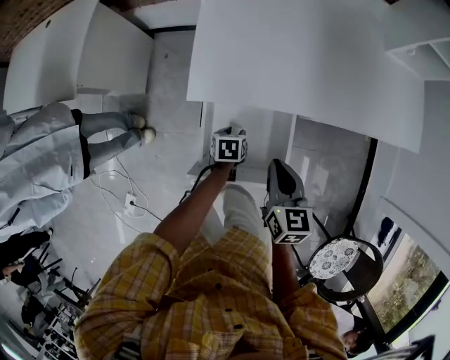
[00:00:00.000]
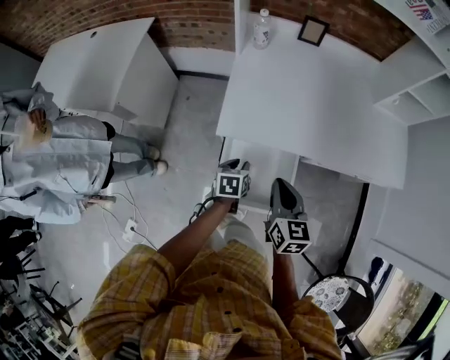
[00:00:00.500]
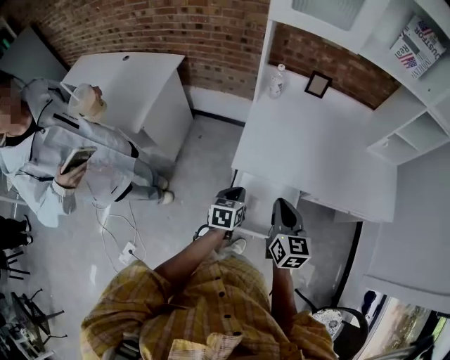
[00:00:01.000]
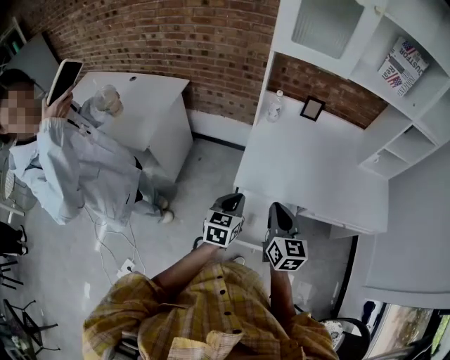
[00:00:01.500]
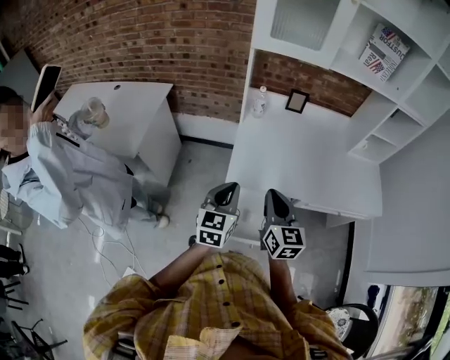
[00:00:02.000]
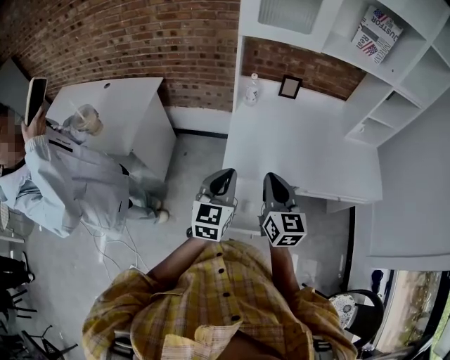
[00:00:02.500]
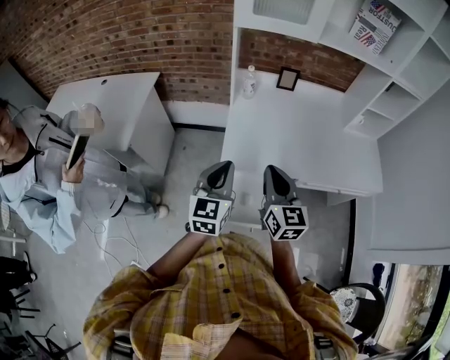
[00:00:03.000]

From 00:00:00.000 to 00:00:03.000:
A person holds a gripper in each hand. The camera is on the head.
From 00:00:00.000 to 00:00:01.500: The right gripper heads upward and to the left, covering some 25 cm, and turns by approximately 20 degrees; the left gripper goes some 35 cm upward, points its fingers some 40 degrees further upward, and closes up.
From 00:00:01.500 to 00:00:03.000: The left gripper shifts about 10 cm upward. Meanwhile the right gripper shifts by approximately 5 cm.

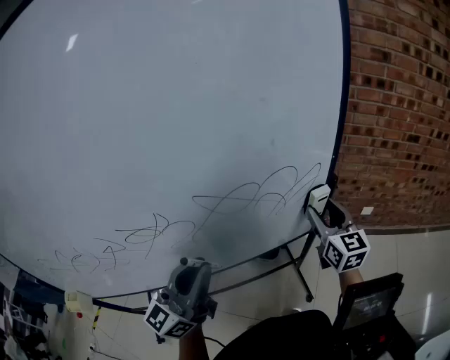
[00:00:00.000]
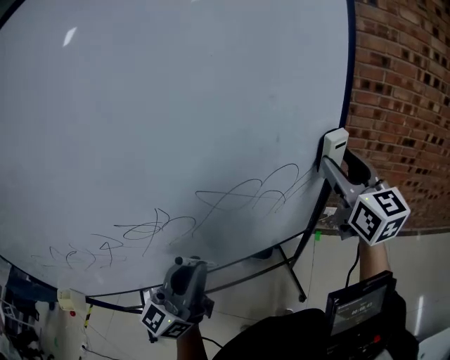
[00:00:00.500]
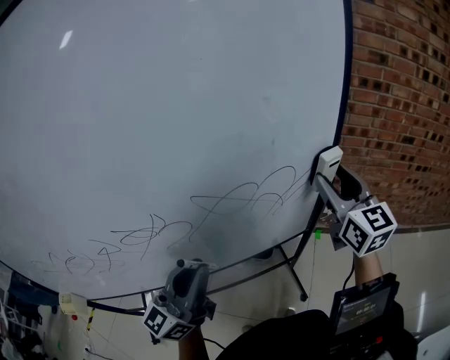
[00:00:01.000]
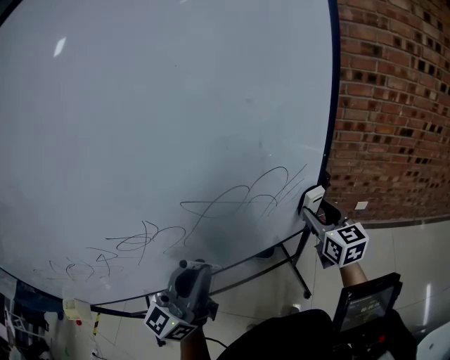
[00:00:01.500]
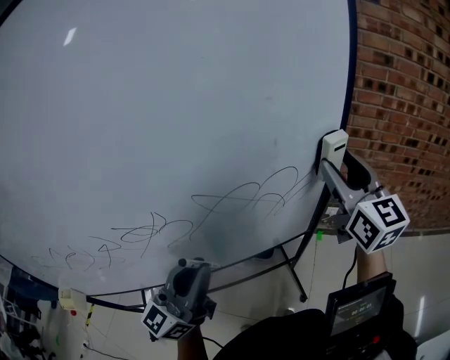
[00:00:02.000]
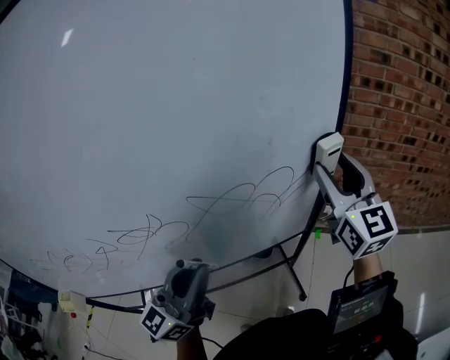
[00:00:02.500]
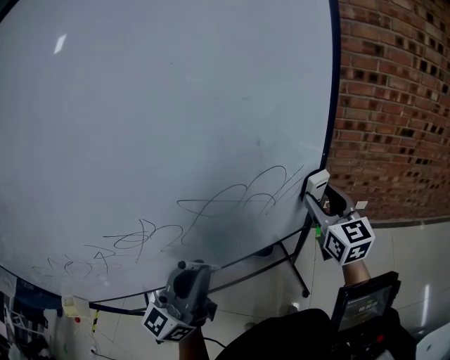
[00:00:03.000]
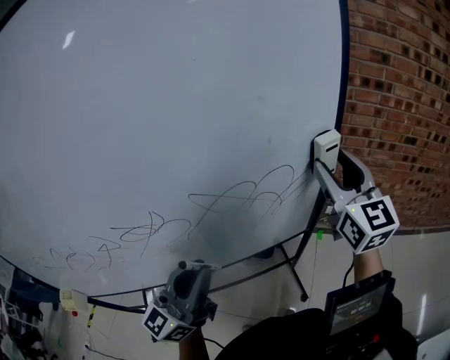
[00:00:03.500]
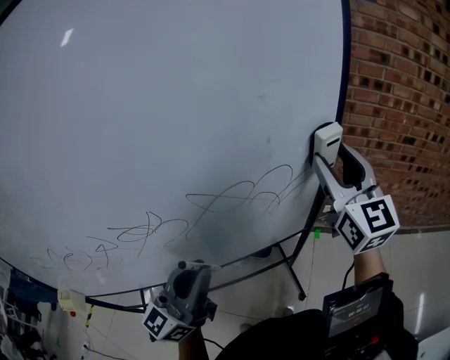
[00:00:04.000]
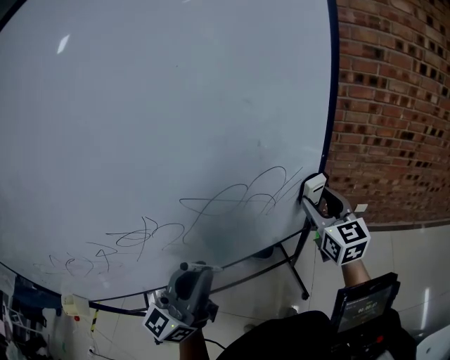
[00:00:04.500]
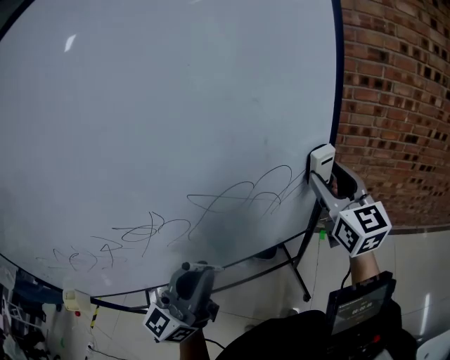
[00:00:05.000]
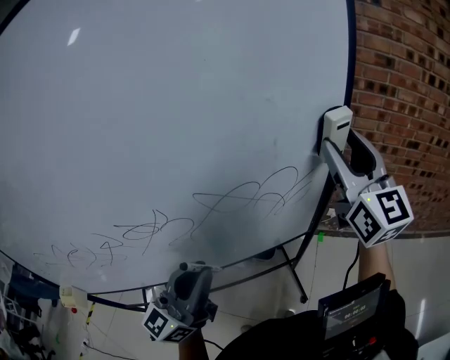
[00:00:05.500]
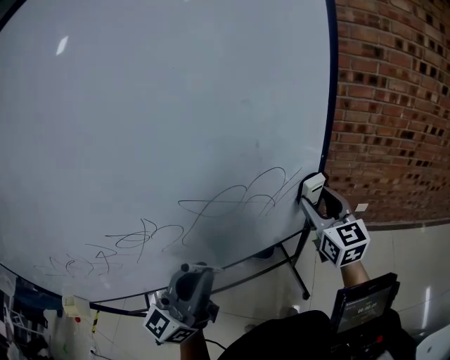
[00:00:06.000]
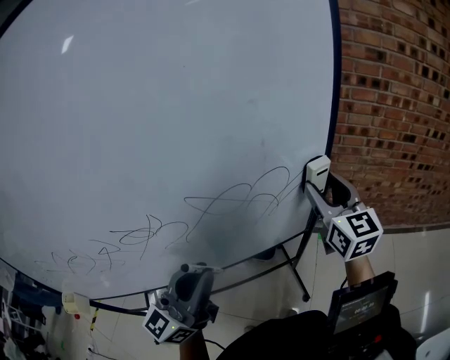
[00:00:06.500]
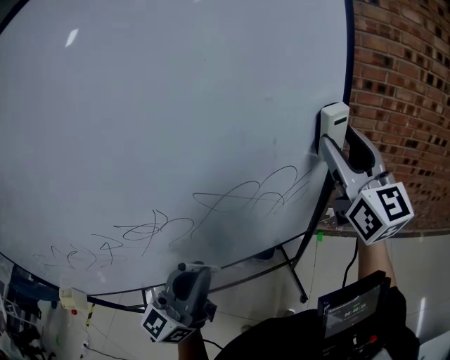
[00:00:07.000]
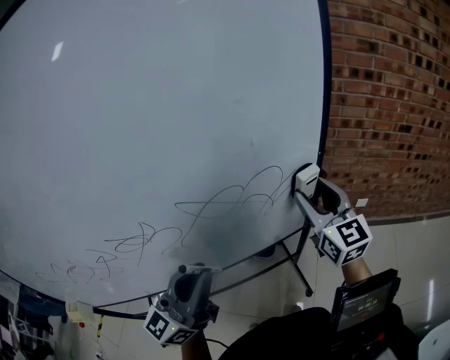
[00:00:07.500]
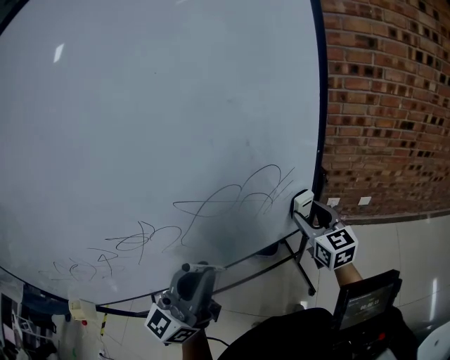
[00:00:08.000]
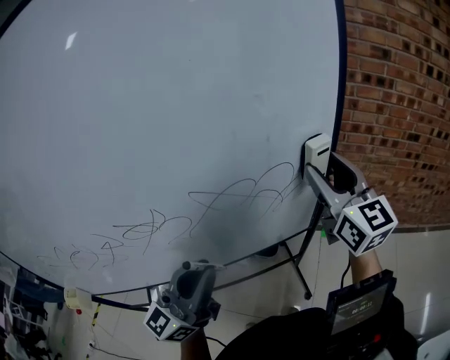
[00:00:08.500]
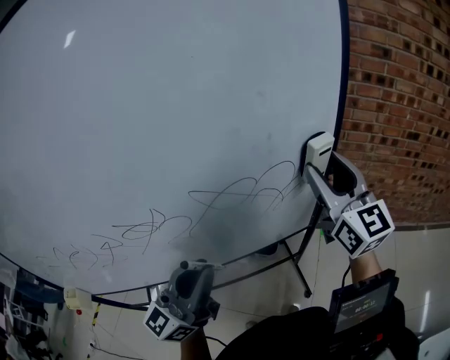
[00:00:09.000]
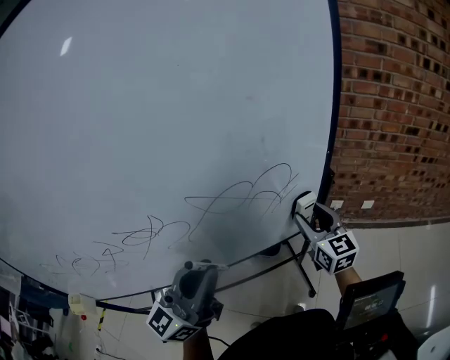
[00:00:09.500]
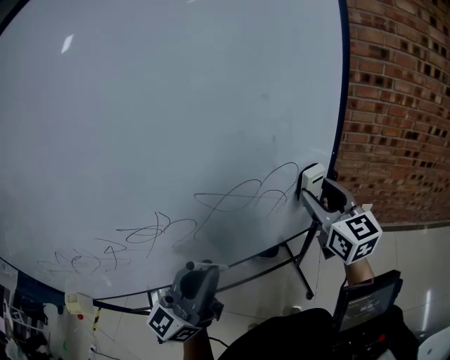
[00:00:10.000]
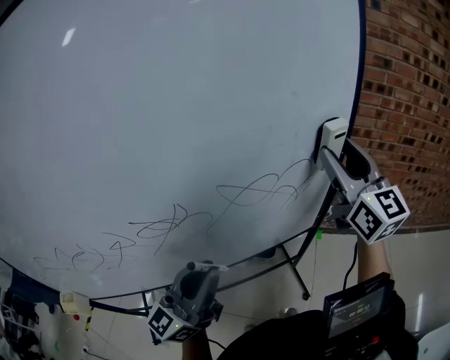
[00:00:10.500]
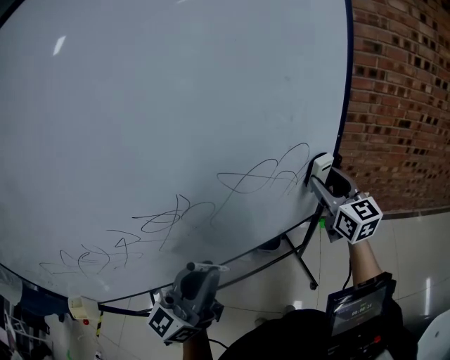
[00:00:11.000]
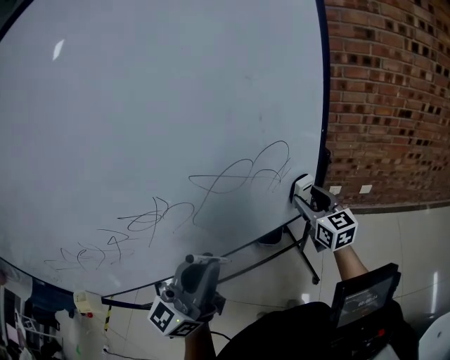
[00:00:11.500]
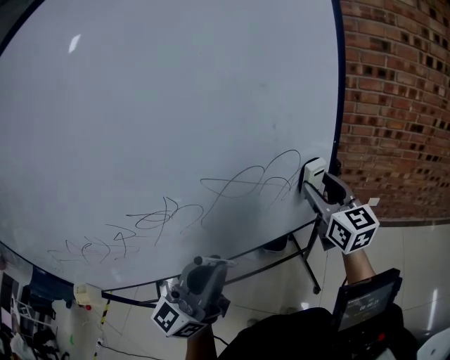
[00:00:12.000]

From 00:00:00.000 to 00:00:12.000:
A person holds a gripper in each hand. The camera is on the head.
From 00:00:00.000 to 00:00:02.000: The right gripper swings up and down, roughly 20 cm each way, with 2 reversals.
From 00:00:02.000 to 00:00:04.000: The right gripper moves some 15 cm downward and comes back.
From 00:00:04.000 to 00:00:06.000: The right gripper goes up and down, some 20 cm each way, reversing 2 times.
From 00:00:06.000 to 00:00:08.000: The right gripper goes upward and returns, roughly 20 cm each way.
From 00:00:08.000 to 00:00:10.000: The right gripper swings up and down, approximately 20 cm each way, with 2 reversals.
From 00:00:10.000 to 00:00:12.000: The right gripper goes up and down, about 25 cm each way, reversing 2 times.

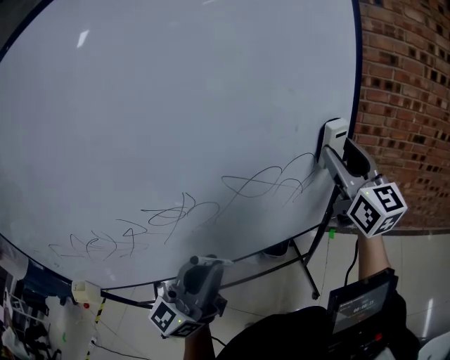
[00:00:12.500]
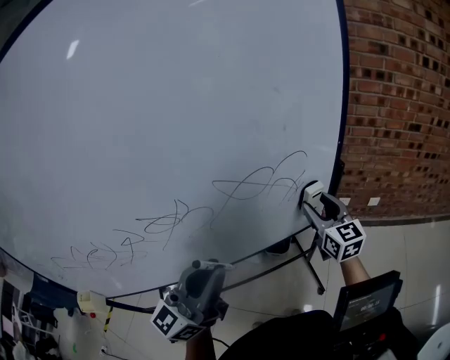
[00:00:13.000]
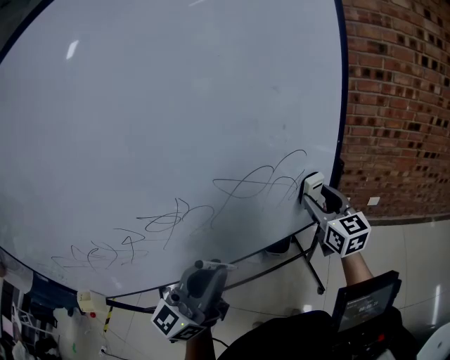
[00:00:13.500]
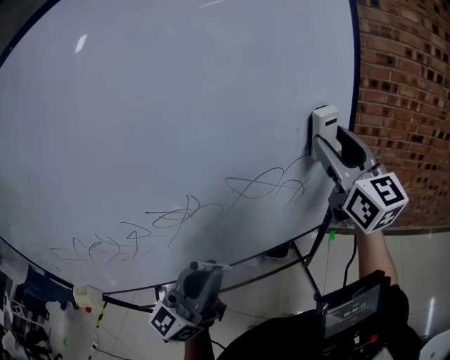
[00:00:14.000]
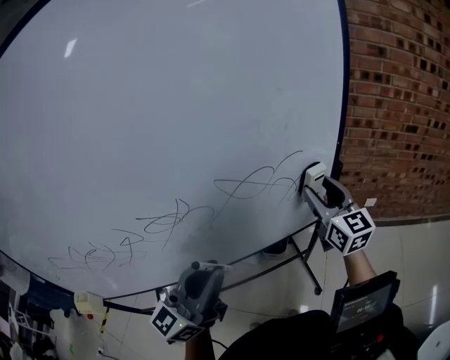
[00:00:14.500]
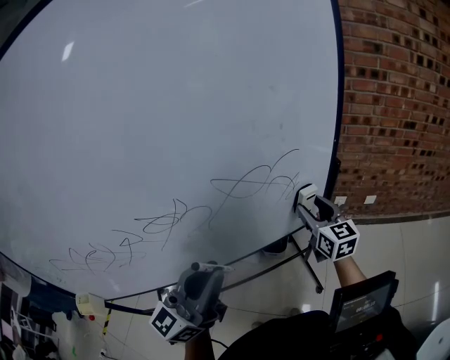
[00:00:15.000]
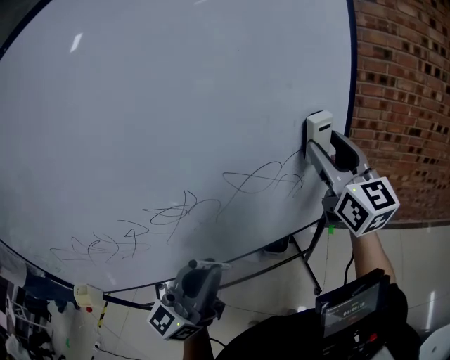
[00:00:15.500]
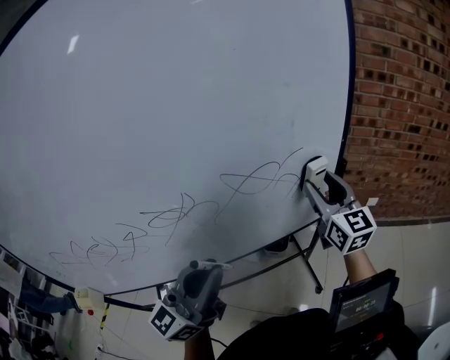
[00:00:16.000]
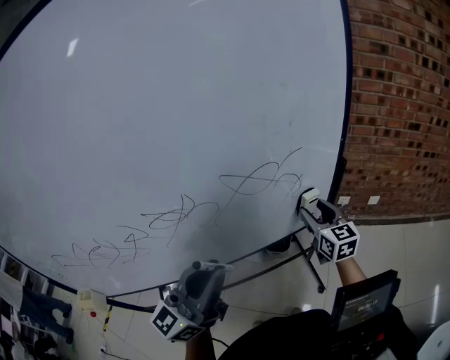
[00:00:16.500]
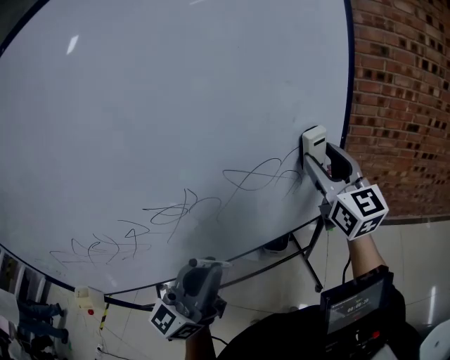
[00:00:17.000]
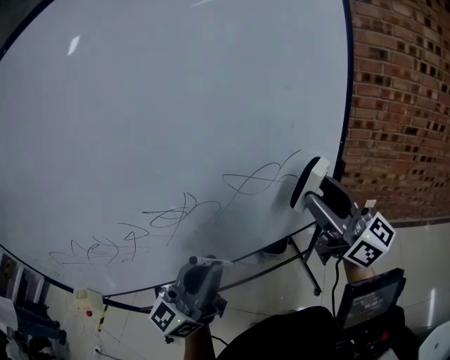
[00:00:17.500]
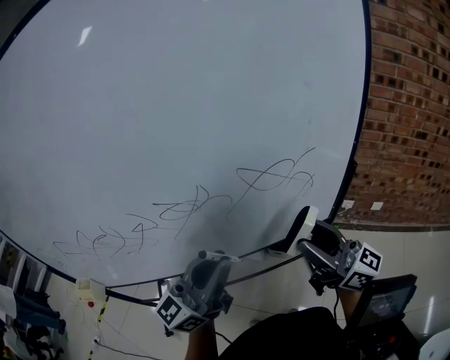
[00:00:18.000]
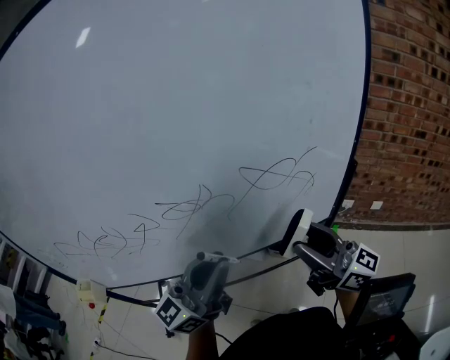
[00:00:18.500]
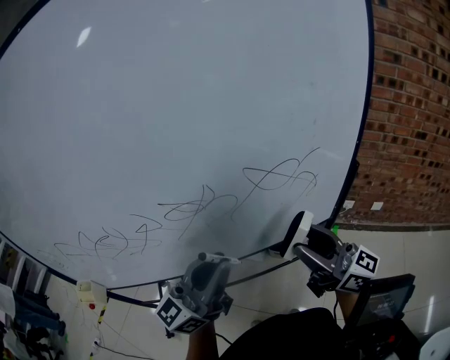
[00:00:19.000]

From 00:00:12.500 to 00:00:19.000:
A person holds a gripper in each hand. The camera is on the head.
From 00:00:12.500 to 00:00:14.500: The right gripper goes up and down, some 25 cm each way, reversing 2 times.
From 00:00:14.500 to 00:00:17.000: The right gripper goes up and down, approximately 25 cm each way, reversing 3 times.
From 00:00:17.000 to 00:00:19.000: The right gripper is displaced backward, to the left and downward by about 20 cm, and turns by roughly 50 degrees.

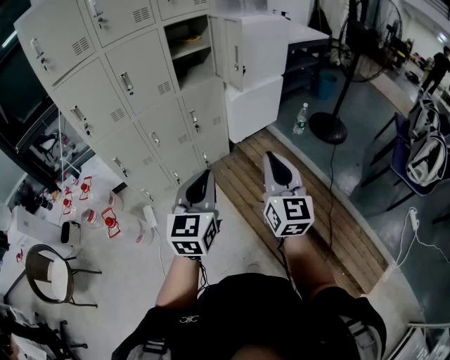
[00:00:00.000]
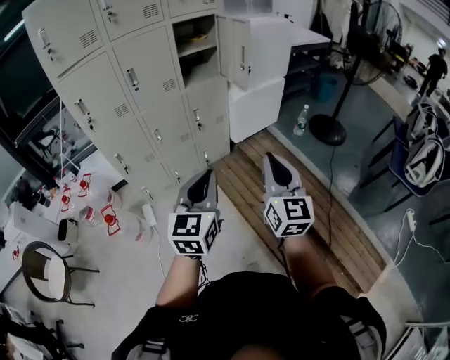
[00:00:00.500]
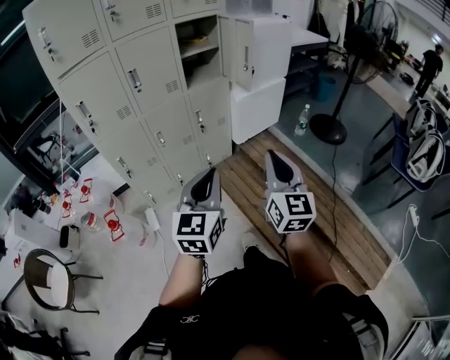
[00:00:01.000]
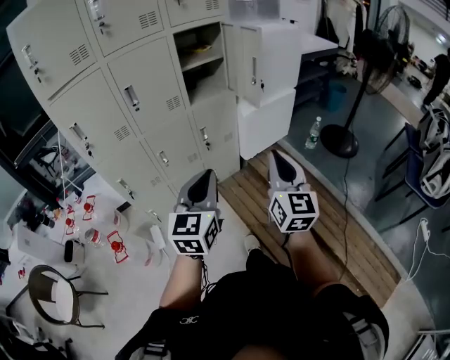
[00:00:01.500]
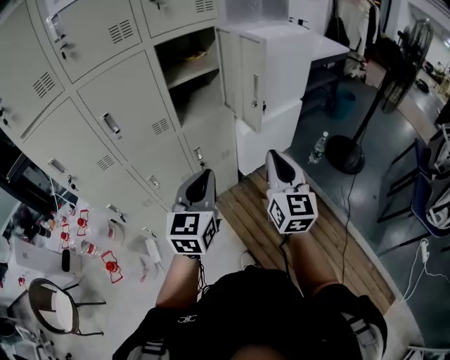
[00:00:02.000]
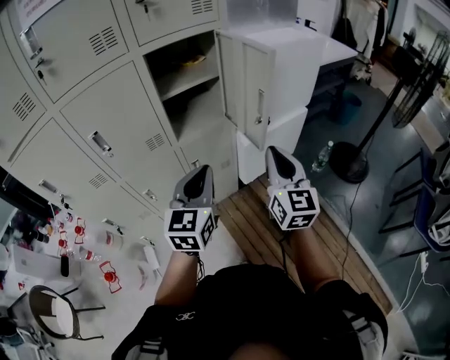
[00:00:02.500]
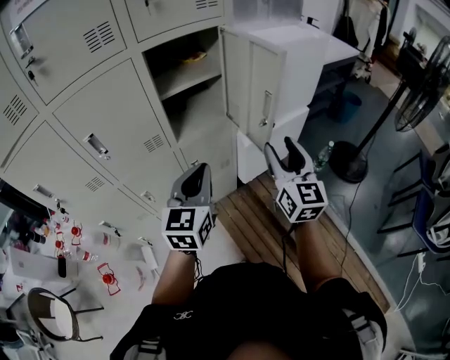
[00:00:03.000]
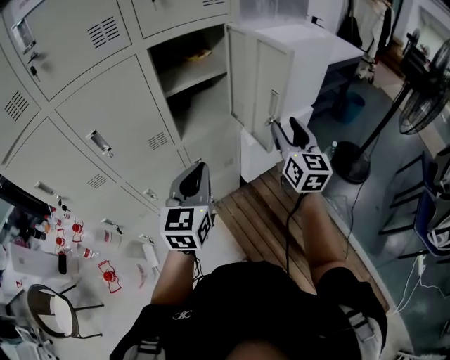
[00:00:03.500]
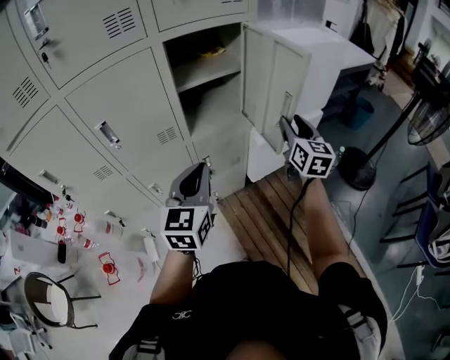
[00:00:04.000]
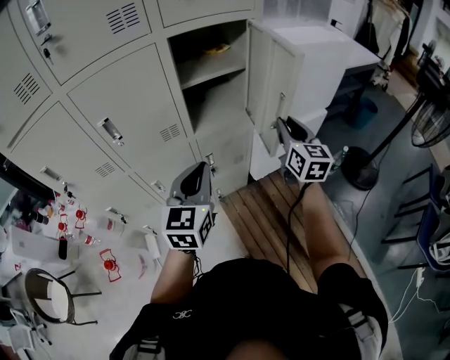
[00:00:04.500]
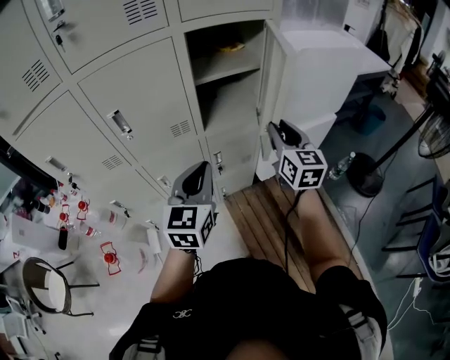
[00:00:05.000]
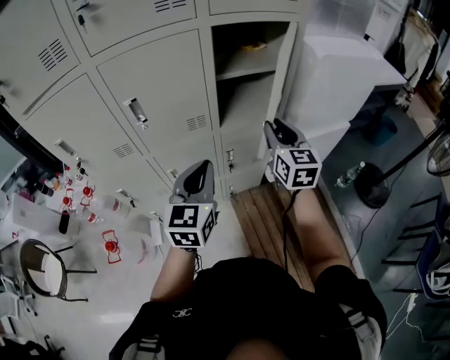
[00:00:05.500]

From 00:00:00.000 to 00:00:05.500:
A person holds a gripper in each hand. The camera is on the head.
From 00:00:00.000 to 00:00:02.000: The two grippers go about 30 cm forward.
From 00:00:02.000 to 00:00:03.500: The right gripper shifts about 20 cm forward, and opens up. Meanwhile the left gripper heads forward, covering some 15 cm.
From 00:00:03.500 to 00:00:05.500: The left gripper moves to the left, roughly 10 cm, while the right gripper heads to the left, covering some 15 cm, and closes up.
